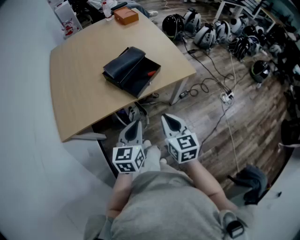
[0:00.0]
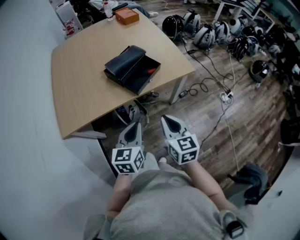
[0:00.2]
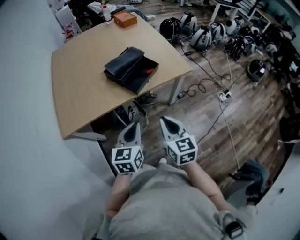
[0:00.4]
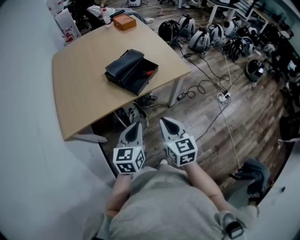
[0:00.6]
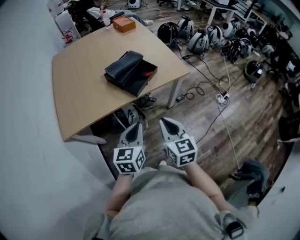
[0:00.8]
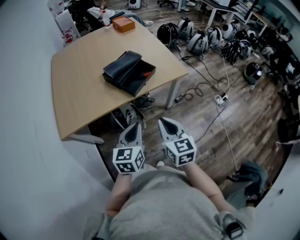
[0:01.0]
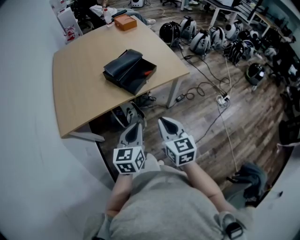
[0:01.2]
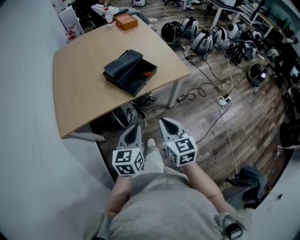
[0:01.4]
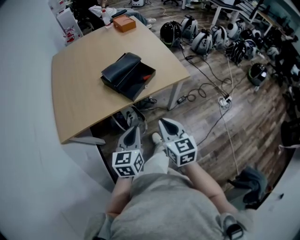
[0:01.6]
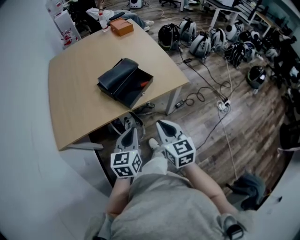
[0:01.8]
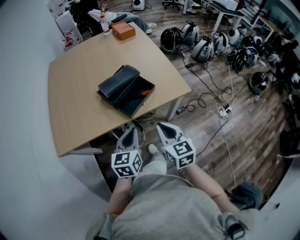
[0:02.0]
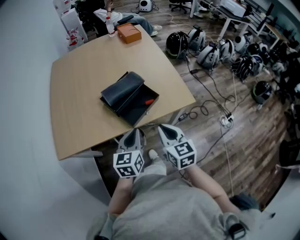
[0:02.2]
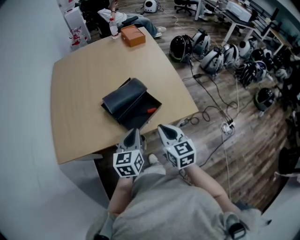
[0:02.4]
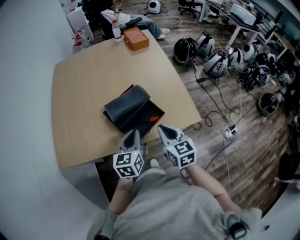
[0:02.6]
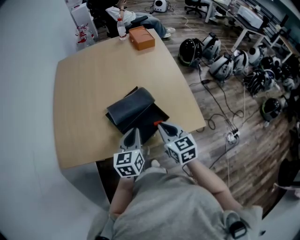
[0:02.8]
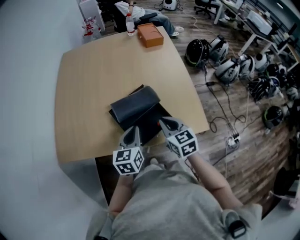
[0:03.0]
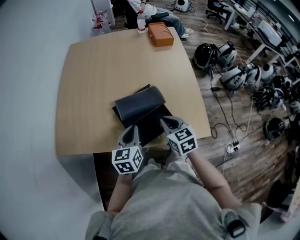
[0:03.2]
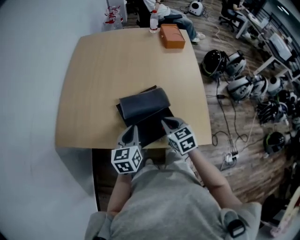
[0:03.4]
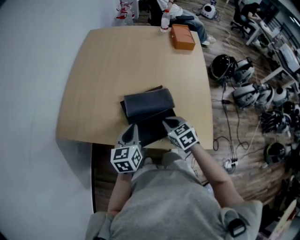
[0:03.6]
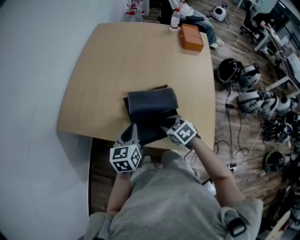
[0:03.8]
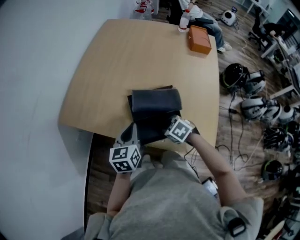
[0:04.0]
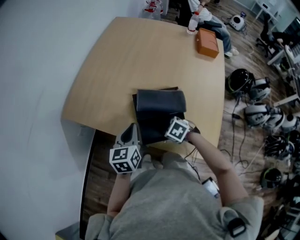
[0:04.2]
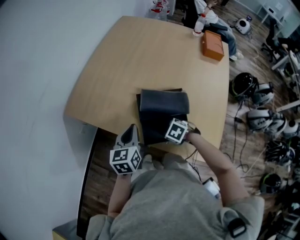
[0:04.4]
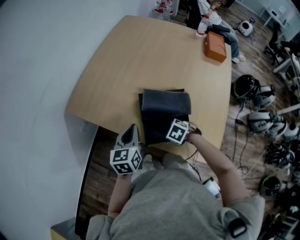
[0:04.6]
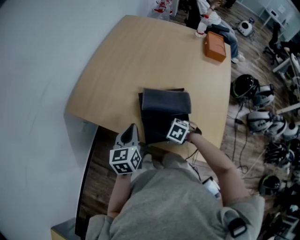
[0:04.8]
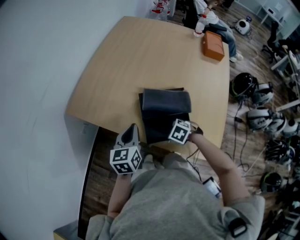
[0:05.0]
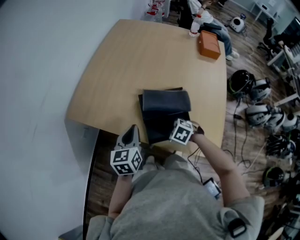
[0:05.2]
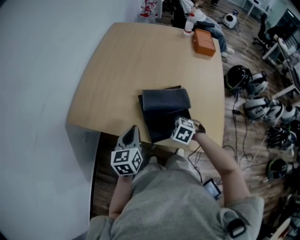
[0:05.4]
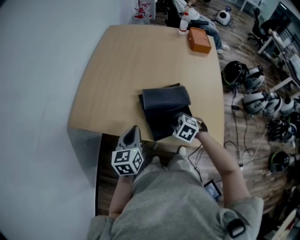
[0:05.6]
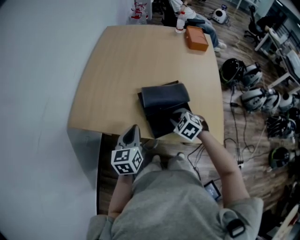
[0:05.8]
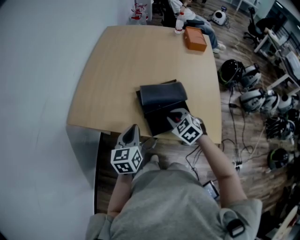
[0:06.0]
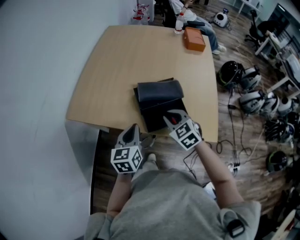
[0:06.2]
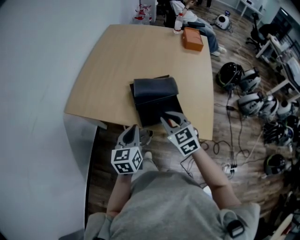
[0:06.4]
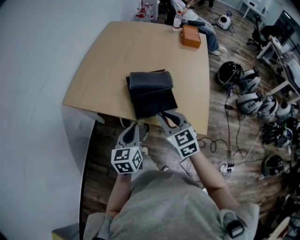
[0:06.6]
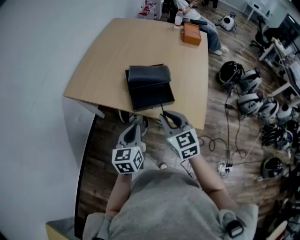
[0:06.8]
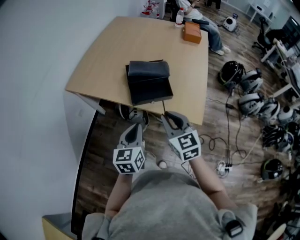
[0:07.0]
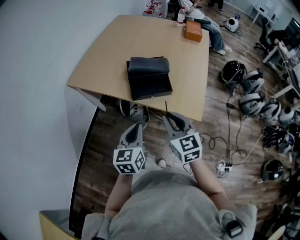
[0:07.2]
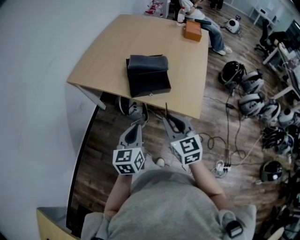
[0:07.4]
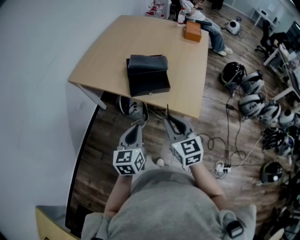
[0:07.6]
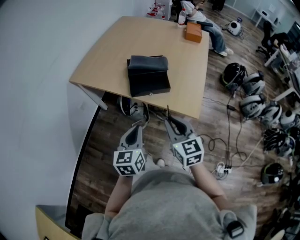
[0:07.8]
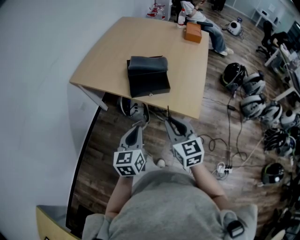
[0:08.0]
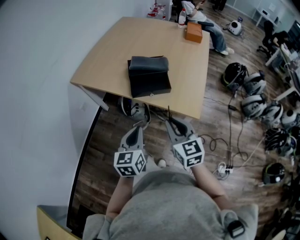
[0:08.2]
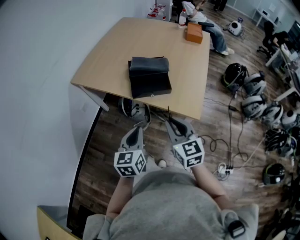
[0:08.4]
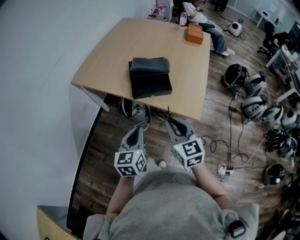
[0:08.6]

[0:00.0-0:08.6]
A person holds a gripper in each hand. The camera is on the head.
0:00.0 to 0:01.4: The two grippers go some 5 cm backward.
0:01.4 to 0:02.8: The grippers both shift forward by approximately 30 cm.
0:02.8 to 0:04.4: The left gripper shifts by approximately 10 cm, and swivels roughly 40 degrees; the right gripper moves downward, roughly 20 cm, angles its fingers downward, by about 50 degrees, and opens its fingers.
0:04.4 to 0:05.8: The left gripper moves approximately 5 cm. The right gripper travels upward by about 10 cm, and changes its angle by roughly 30 degrees.
0:05.8 to 0:07.2: The left gripper shifts approximately 30 cm backward and to the right. Meanwhile the right gripper shifts roughly 30 cm backward and upward, and angles its fingers upward, by about 40 degrees.
0:07.2 to 0:08.6: The grippers move only a little.

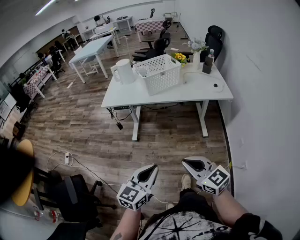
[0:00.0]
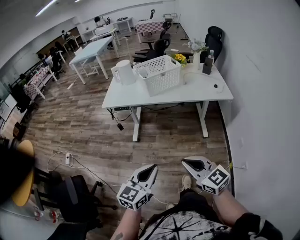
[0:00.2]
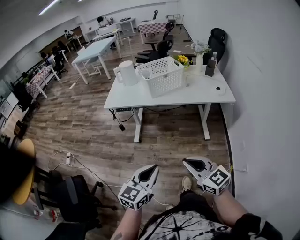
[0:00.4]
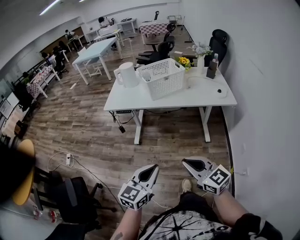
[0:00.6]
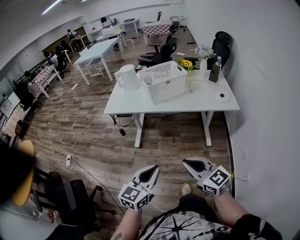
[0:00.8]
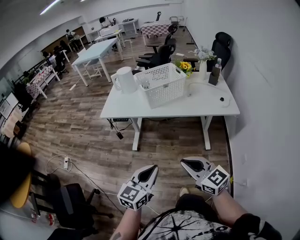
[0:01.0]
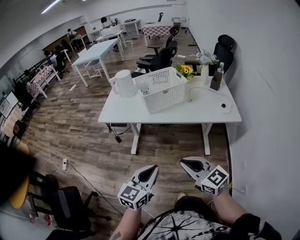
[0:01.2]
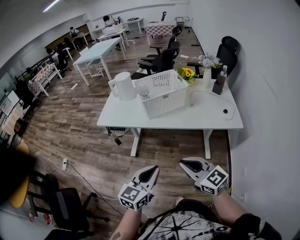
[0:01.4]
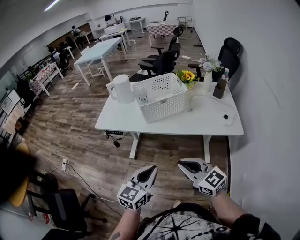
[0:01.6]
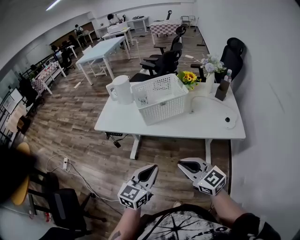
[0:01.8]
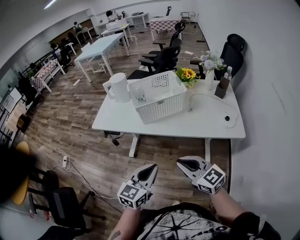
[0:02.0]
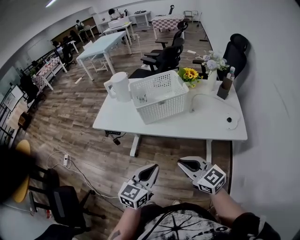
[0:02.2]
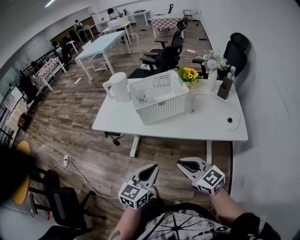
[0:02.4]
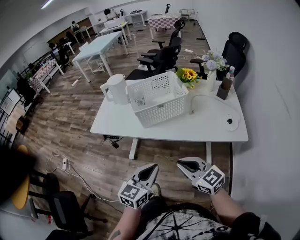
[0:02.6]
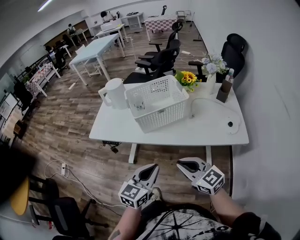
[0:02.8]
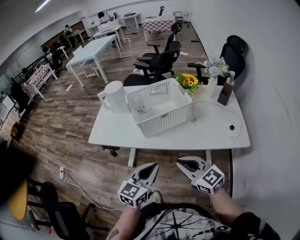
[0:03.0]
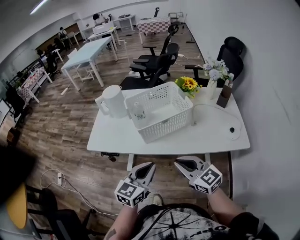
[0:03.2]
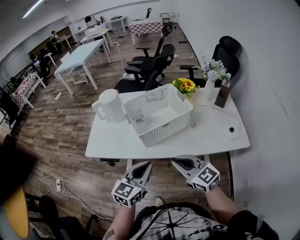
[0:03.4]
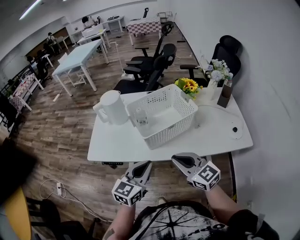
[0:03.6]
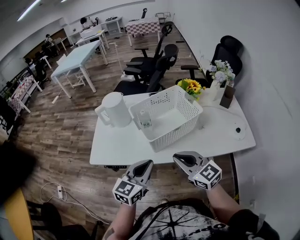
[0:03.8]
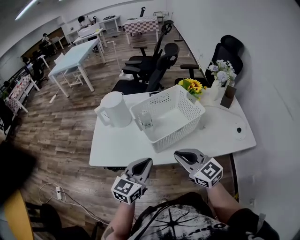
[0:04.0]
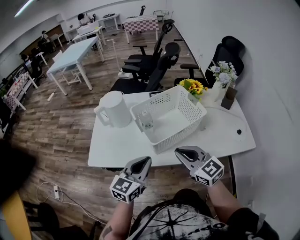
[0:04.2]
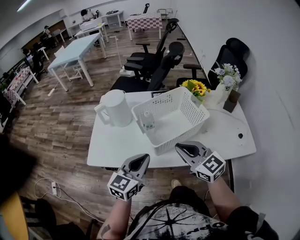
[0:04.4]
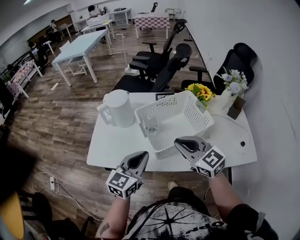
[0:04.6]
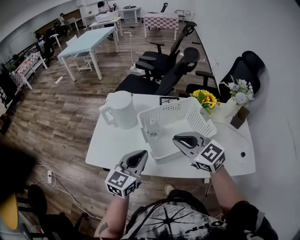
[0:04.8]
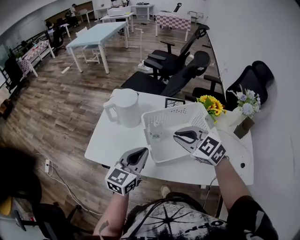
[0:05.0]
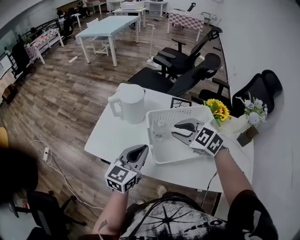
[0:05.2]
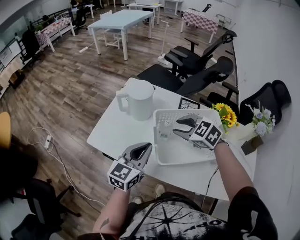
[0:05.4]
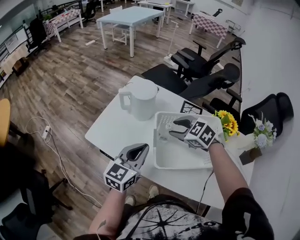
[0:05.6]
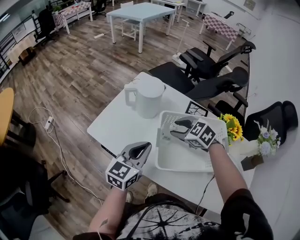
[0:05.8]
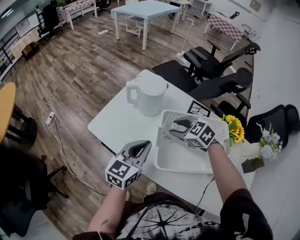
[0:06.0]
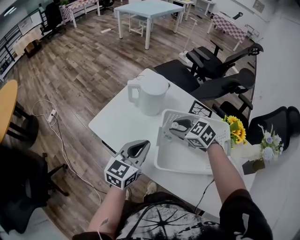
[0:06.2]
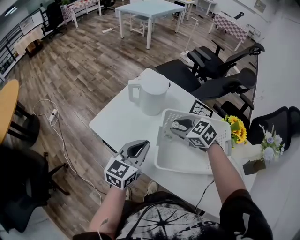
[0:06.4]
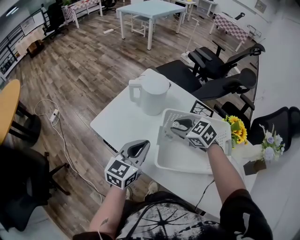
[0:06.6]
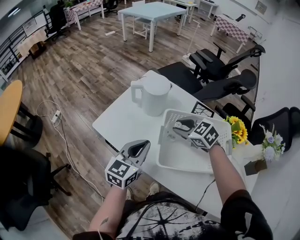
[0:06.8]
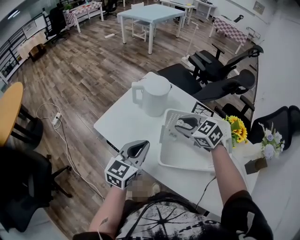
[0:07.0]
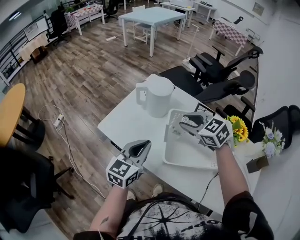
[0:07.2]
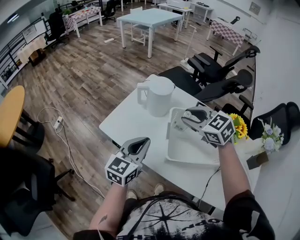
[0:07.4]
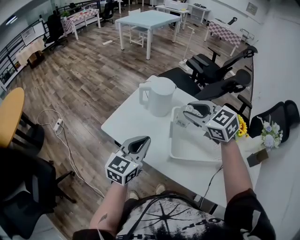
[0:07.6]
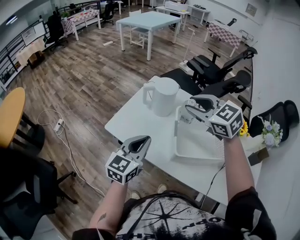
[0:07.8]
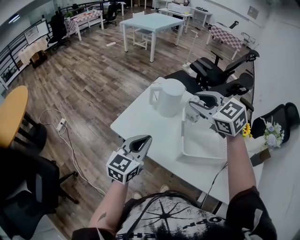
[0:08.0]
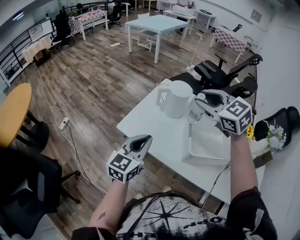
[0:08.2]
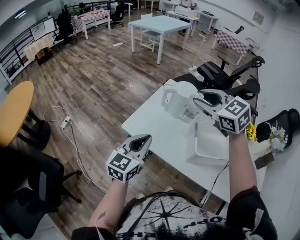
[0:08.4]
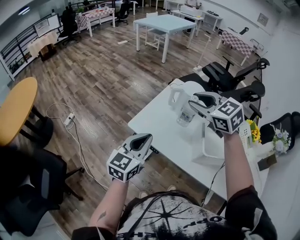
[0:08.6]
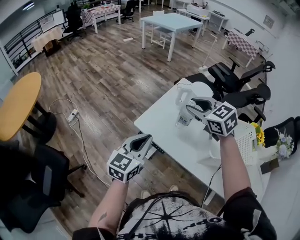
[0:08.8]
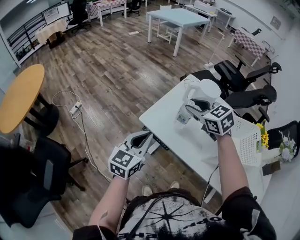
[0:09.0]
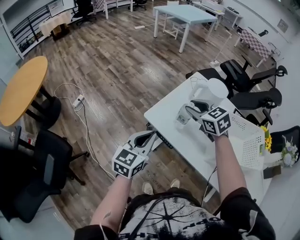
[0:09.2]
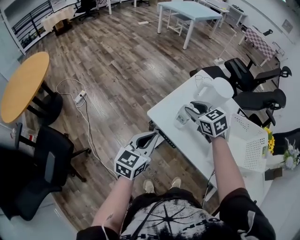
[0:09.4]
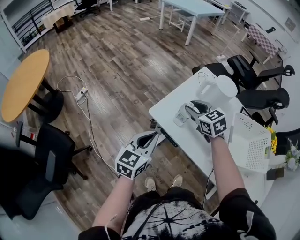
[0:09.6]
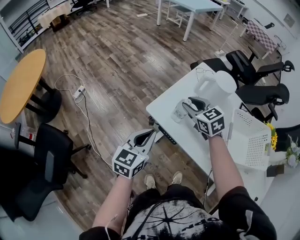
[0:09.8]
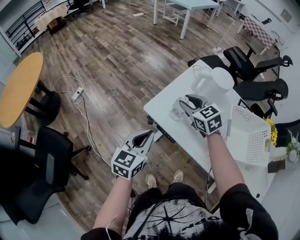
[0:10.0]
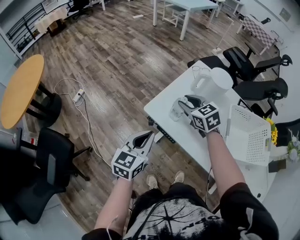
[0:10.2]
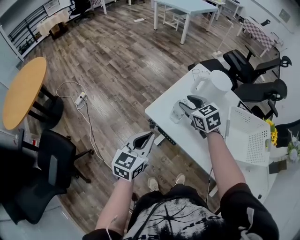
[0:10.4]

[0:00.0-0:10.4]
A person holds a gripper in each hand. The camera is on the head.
0:00.0 to 0:01.4: The grippers both shift forward by about 20 cm.
0:01.4 to 0:03.0: The two grippers go roughly 20 cm forward.
0:03.0 to 0:04.4: Both grippers travel together forward and to the left, roughly 20 cm.
0:04.4 to 0:06.0: The left gripper ends up approximately 15 cm from where it was, and changes its angle by about 30 degrees. Meanwhile the right gripper ends up roughly 25 cm from where it was, angles its fingers downward, by about 40 degrees, and opens.
0:06.0 to 0:07.4: The right gripper heads upward, covering roughly 10 cm; the left gripper moves to the left, roughly 5 cm.
0:07.4 to 0:09.0: Both grippers move to the left, about 25 cm.
0:09.0 to 0:10.4: The right gripper is displaced downward by about 10 cm.

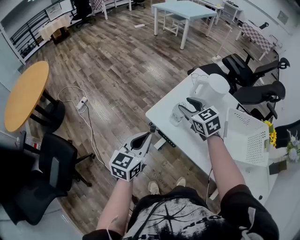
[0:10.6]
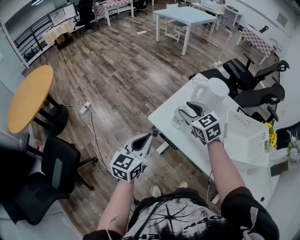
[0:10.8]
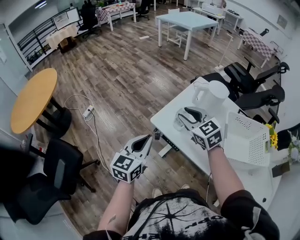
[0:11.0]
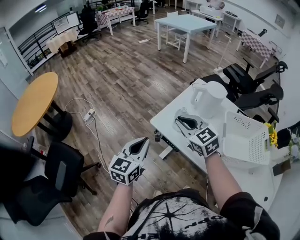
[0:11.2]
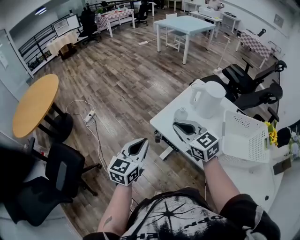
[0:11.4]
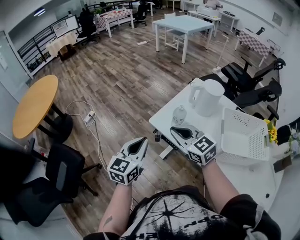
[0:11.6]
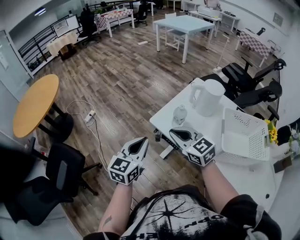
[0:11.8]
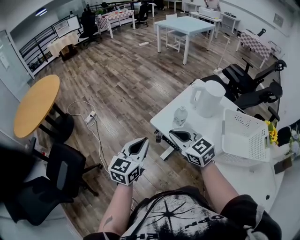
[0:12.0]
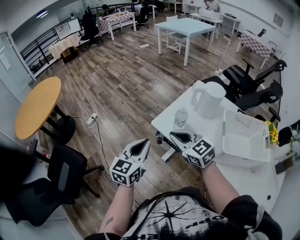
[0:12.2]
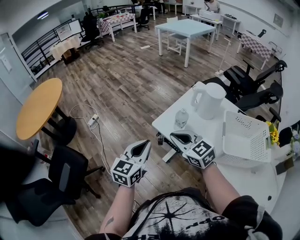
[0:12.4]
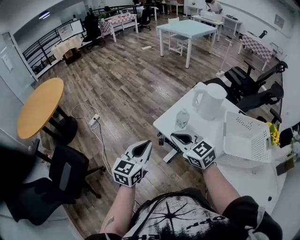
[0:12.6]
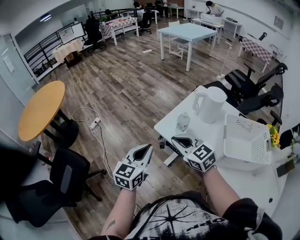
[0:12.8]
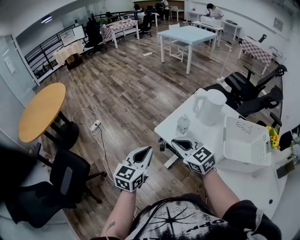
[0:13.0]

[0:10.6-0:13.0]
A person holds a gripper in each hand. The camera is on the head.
0:10.6 to 0:11.8: The right gripper travels backward and to the left by approximately 15 cm, and closes; the left gripper moves approximately 5 cm.
0:11.8 to 0:13.0: There are only small adjustments of the grippers.

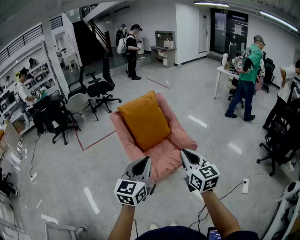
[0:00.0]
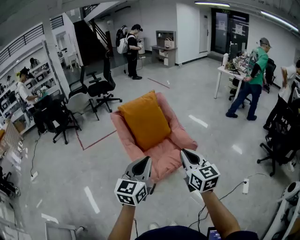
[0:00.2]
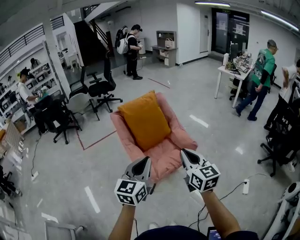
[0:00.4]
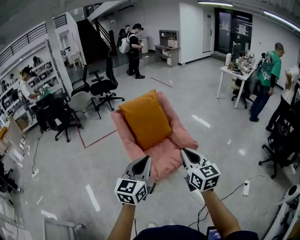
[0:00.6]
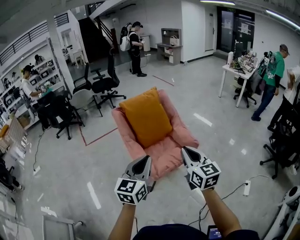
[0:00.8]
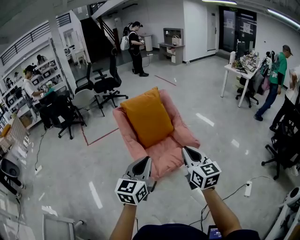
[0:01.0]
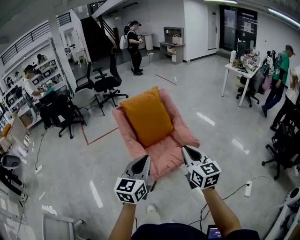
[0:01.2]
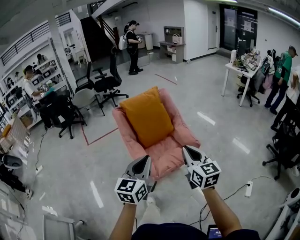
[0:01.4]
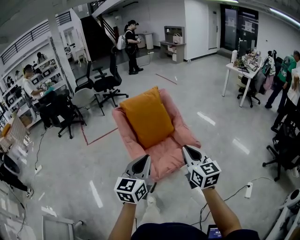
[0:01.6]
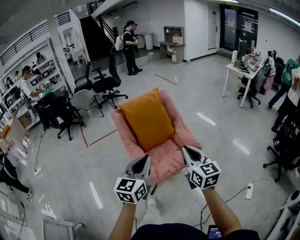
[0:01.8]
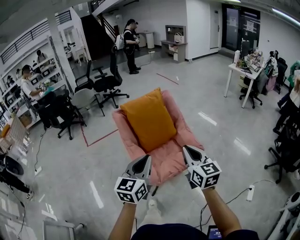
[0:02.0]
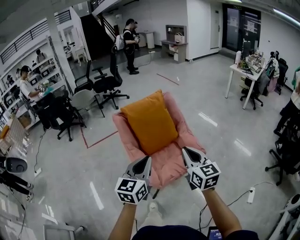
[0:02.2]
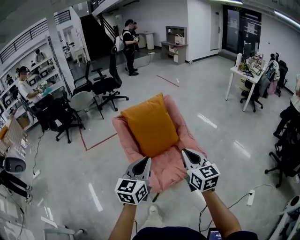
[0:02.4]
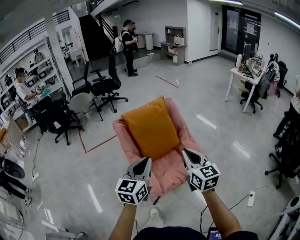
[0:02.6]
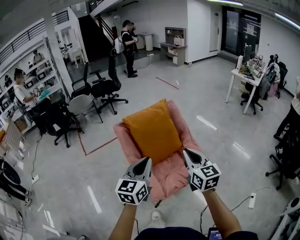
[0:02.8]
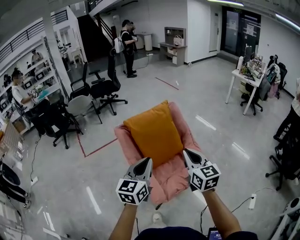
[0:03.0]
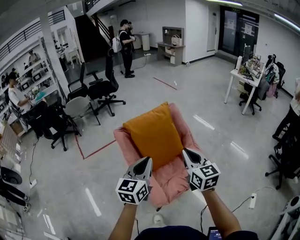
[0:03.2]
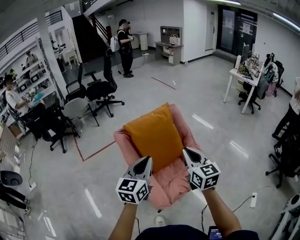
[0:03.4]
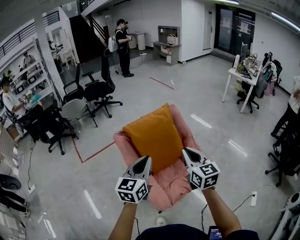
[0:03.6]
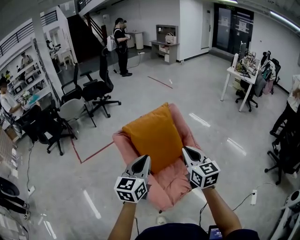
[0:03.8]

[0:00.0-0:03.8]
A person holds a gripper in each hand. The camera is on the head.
0:00.0 to 0:01.2: The right gripper moves some 5 cm.
0:01.2 to 0:02.6: The two grippers go roughly 15 cm forward.
0:02.6 to 0:03.8: Both grippers travel together forward and to the left, about 15 cm.
